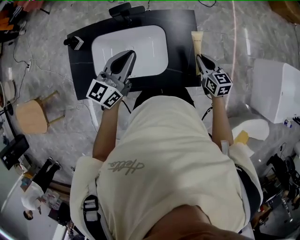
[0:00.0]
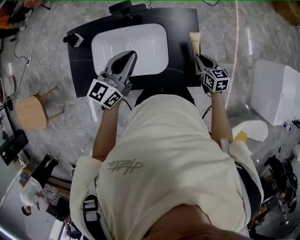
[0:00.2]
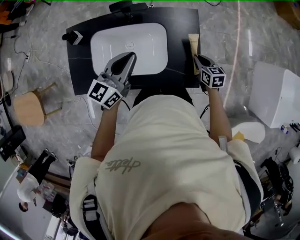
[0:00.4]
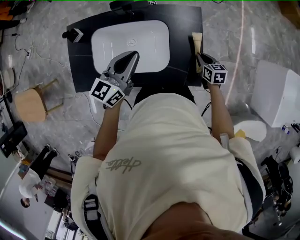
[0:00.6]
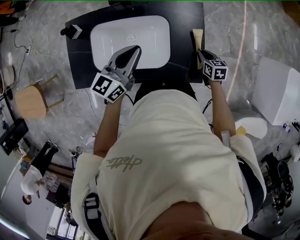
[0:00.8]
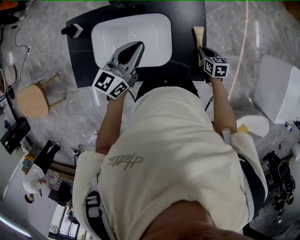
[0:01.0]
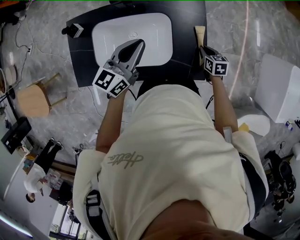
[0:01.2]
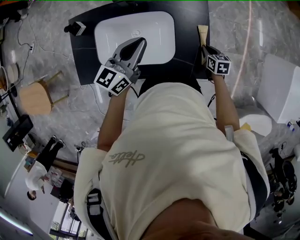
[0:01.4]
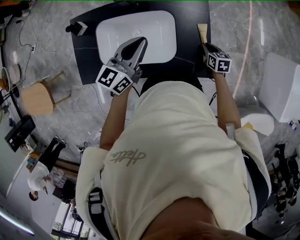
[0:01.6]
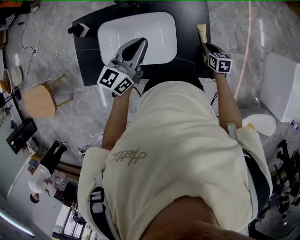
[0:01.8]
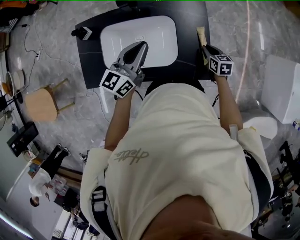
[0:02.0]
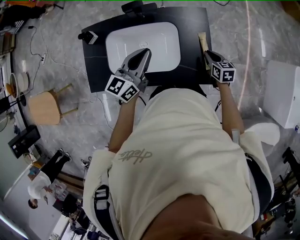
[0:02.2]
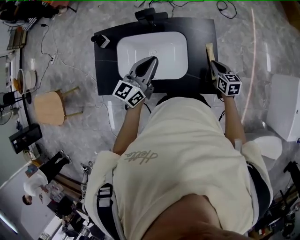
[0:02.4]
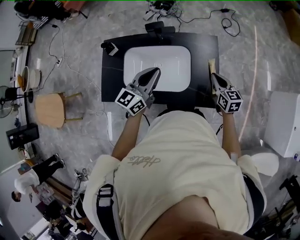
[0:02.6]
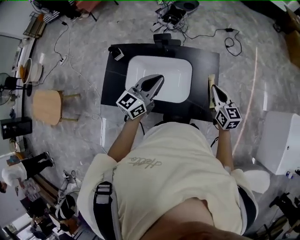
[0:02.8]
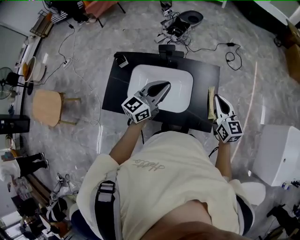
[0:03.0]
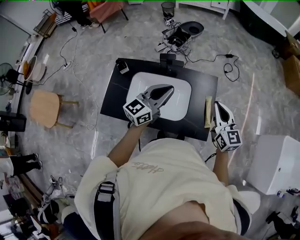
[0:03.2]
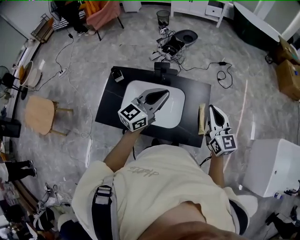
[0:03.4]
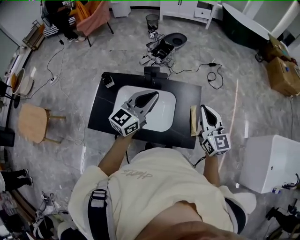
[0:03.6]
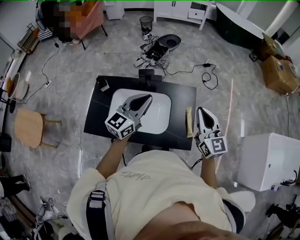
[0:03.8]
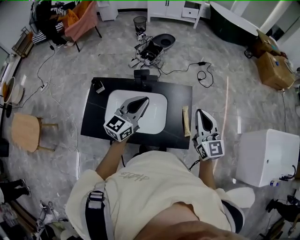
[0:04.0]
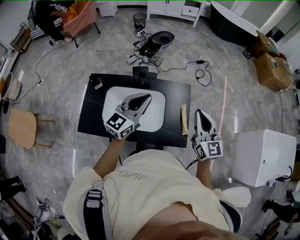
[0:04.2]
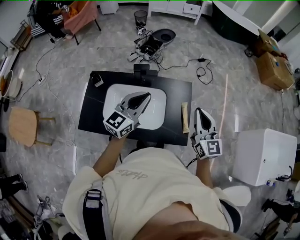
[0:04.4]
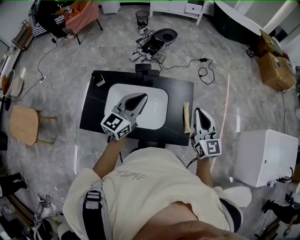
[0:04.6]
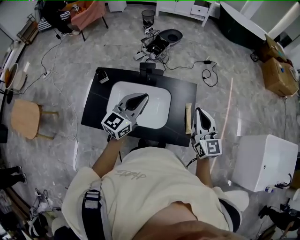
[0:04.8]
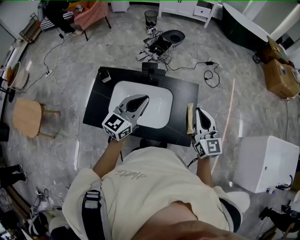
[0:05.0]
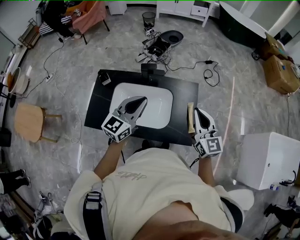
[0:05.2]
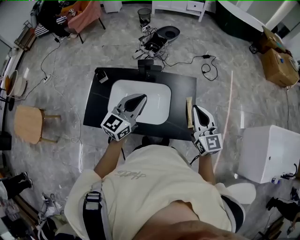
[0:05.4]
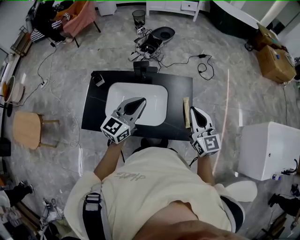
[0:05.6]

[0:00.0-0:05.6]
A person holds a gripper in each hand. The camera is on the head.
0.0 to 1.4 s: The left gripper changes place by about 5 cm, while the right gripper moves downward, approximately 15 cm, and turns by about 20 degrees.
1.4 to 2.8 s: The left gripper travels backward and upward by roughly 10 cm, while the right gripper moves upward, roughly 25 cm, and tips its fingers upward by roughly 30 degrees.
2.8 to 4.2 s: The right gripper shifts some 15 cm upward, and changes its angle by approximately 20 degrees, while the left gripper heads upward, covering about 10 cm.
4.2 to 5.6 s: The left gripper changes place by approximately 5 cm.

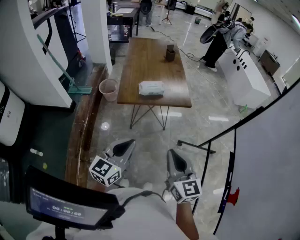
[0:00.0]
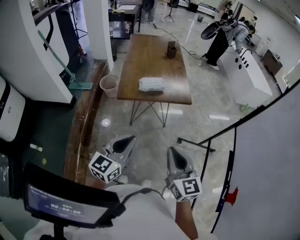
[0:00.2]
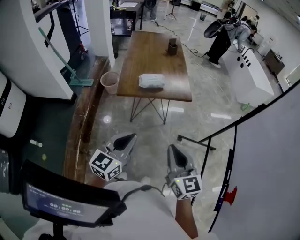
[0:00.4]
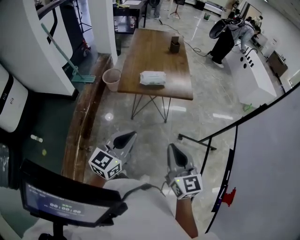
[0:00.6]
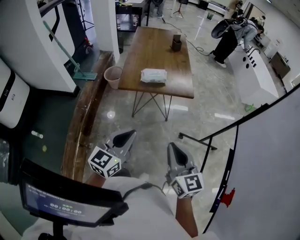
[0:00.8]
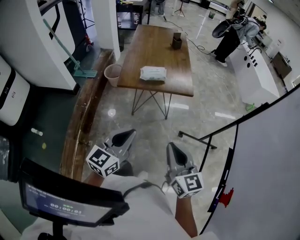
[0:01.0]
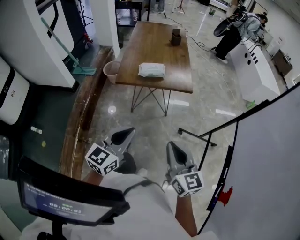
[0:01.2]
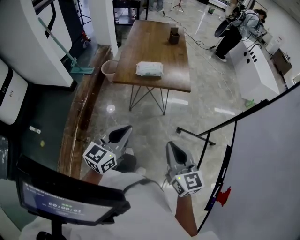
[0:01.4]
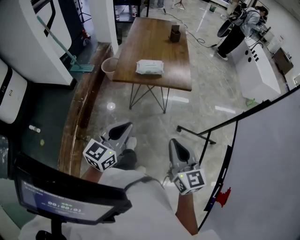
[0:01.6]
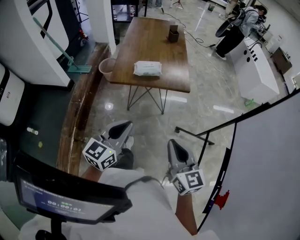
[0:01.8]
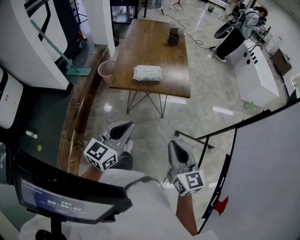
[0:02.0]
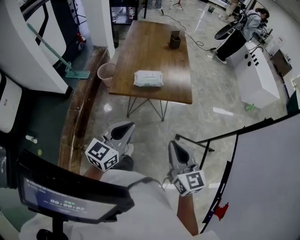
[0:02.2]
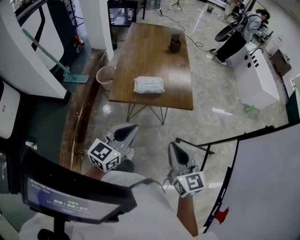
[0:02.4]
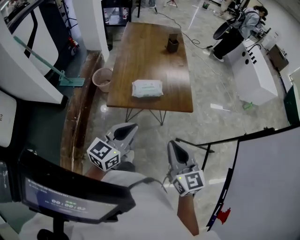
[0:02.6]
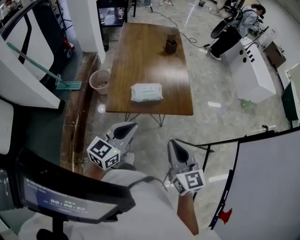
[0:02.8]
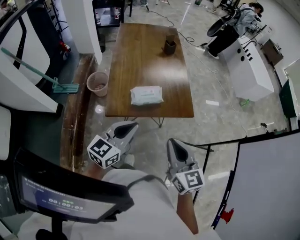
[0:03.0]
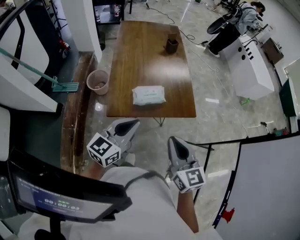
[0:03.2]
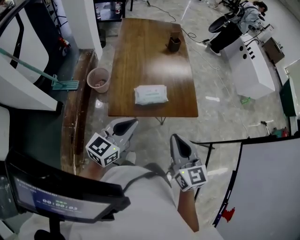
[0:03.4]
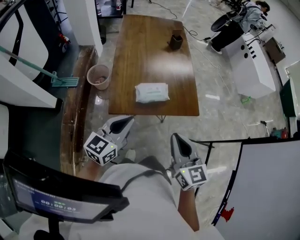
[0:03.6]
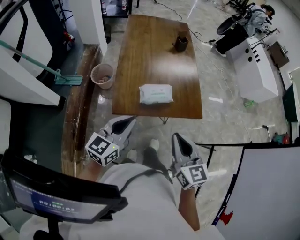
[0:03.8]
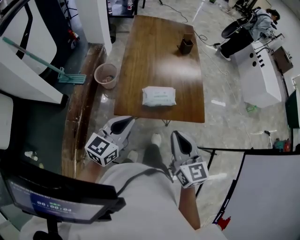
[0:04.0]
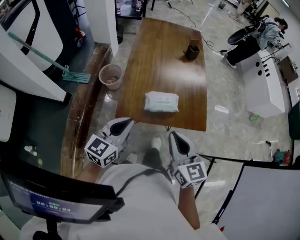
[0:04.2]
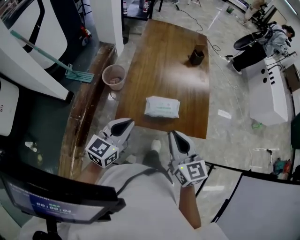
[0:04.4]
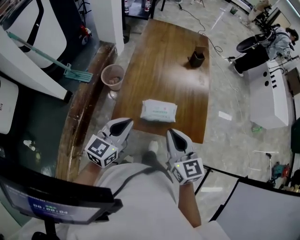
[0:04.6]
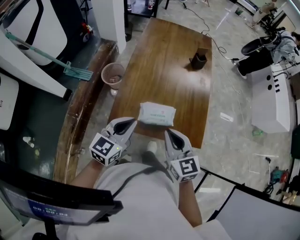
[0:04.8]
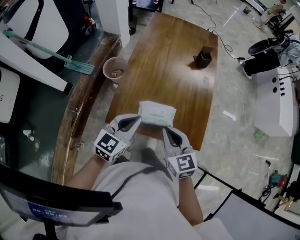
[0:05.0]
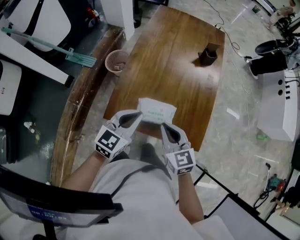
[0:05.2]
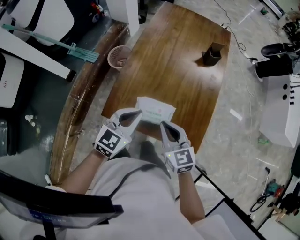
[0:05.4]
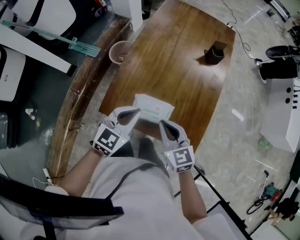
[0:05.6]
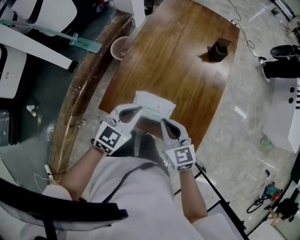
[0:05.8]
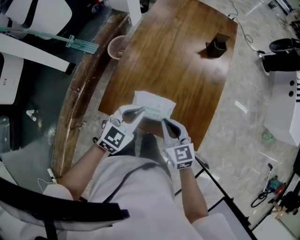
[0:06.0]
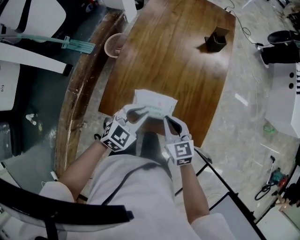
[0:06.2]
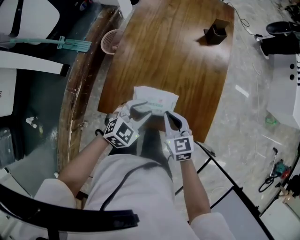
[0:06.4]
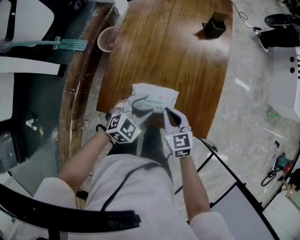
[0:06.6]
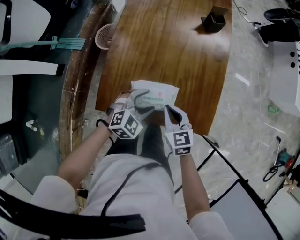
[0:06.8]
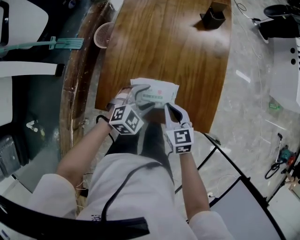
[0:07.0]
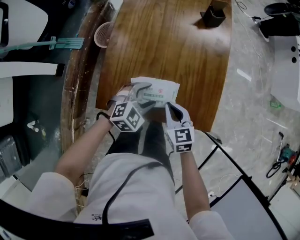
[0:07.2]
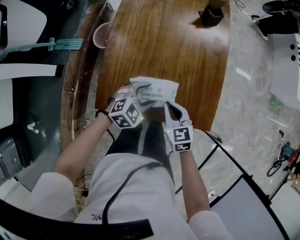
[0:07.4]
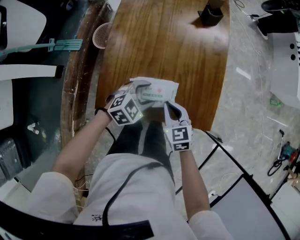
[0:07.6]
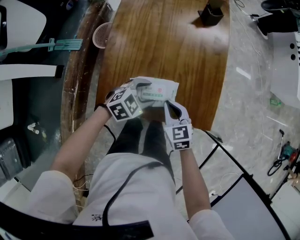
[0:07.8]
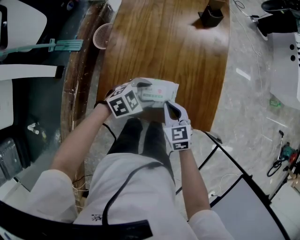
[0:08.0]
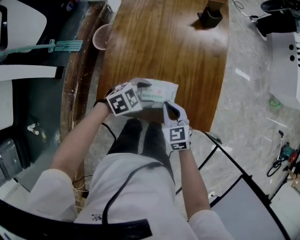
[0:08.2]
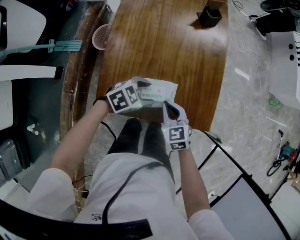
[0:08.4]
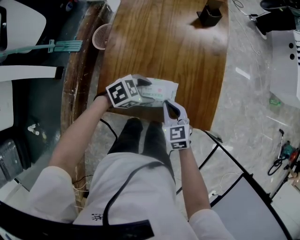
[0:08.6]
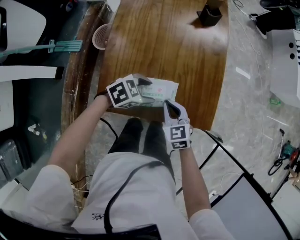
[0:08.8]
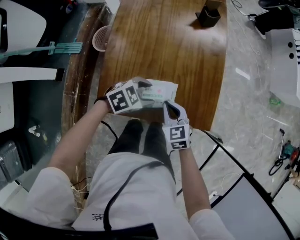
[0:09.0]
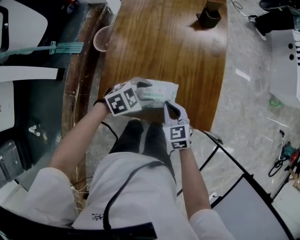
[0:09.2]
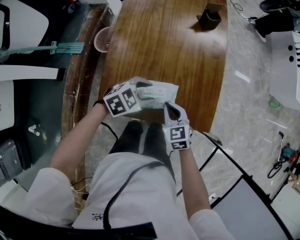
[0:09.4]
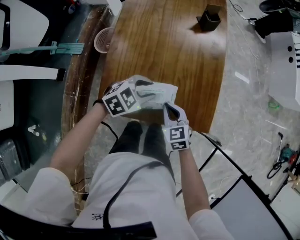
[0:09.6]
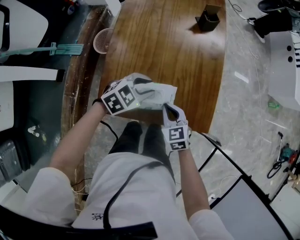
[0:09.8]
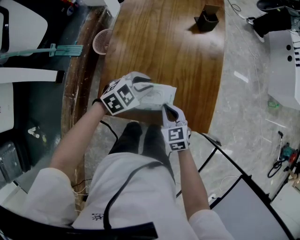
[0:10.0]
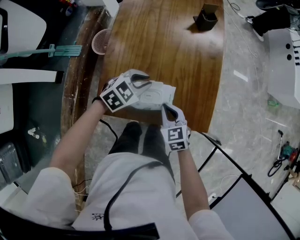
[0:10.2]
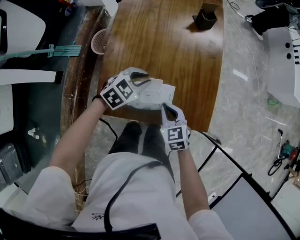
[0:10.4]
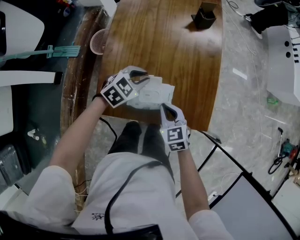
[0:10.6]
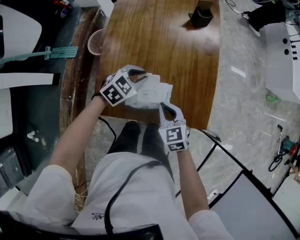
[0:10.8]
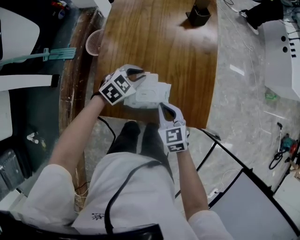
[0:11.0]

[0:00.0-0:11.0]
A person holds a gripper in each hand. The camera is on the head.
0.0 to 1.6 s: Both grippers move to the right, about 10 cm.
1.6 to 3.2 s: The right gripper heads forward and to the left, covering some 30 cm. The left gripper heads forward, covering some 30 cm.
3.2 to 4.8 s: Both grippers move forward, some 15 cm. The left gripper rotates about 20 degrees. Meanwhile the right gripper rotates about 20 degrees.
4.8 to 6.2 s: The left gripper travels downward, to the right and forward by approximately 15 cm, and turns by roughly 30 degrees; the right gripper goes some 15 cm downward and forward.
6.2 to 7.8 s: Both grippers move downward, about 10 cm. The left gripper turns by approximately 30 degrees, and opens.
7.8 to 9.4 s: The grippers move only a little.
9.4 to 11.0 s: The left gripper goes about 5 cm forward, and closes its fingers.

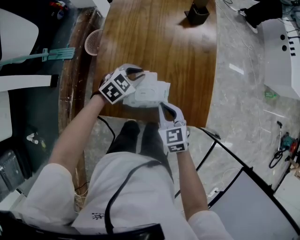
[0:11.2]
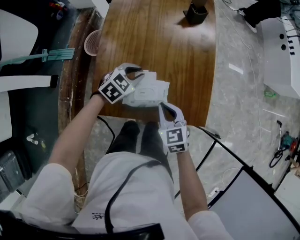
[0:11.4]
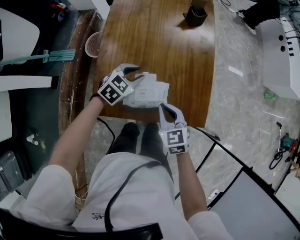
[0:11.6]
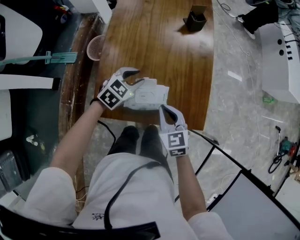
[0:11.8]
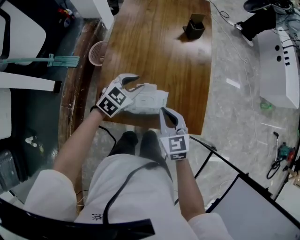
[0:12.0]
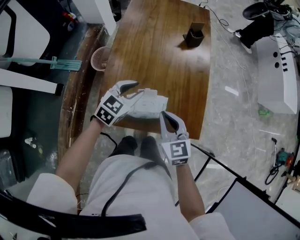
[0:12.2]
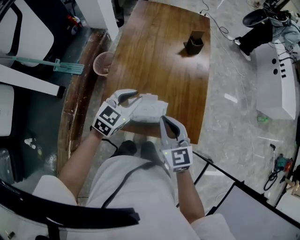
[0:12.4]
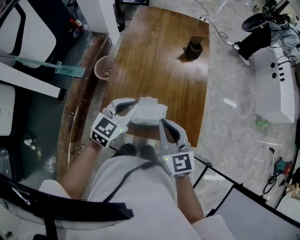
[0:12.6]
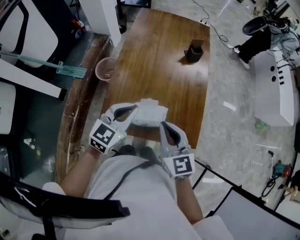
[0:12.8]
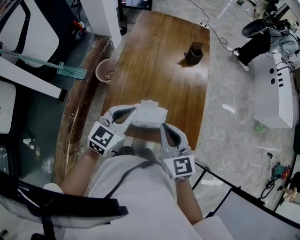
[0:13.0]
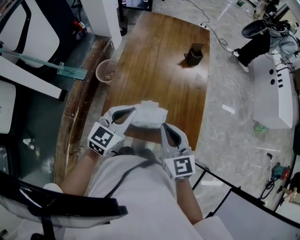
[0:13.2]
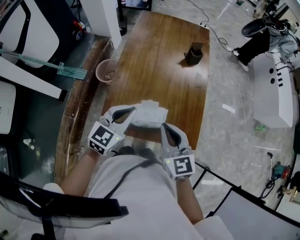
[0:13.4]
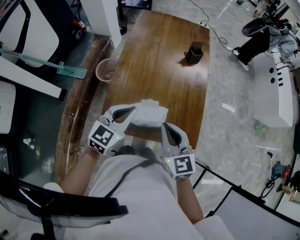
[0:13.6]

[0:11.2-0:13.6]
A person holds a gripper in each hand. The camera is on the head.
11.2 to 12.4 s: The grippers both shift upward by about 15 cm. The left gripper turns by some 20 degrees.
12.4 to 13.6 s: The left gripper moves some 5 cm.

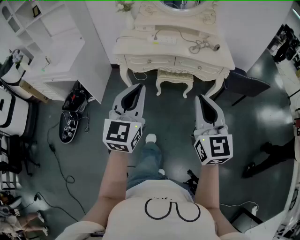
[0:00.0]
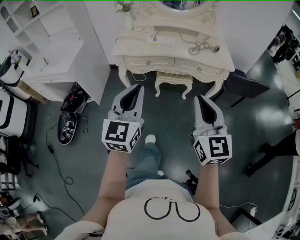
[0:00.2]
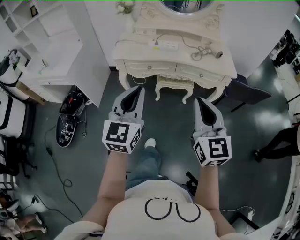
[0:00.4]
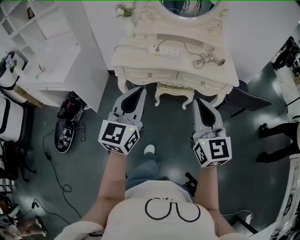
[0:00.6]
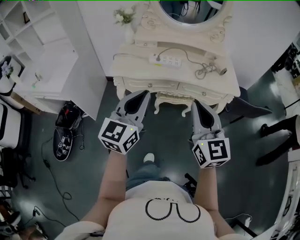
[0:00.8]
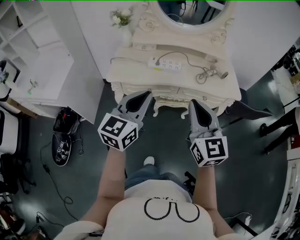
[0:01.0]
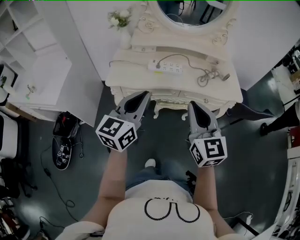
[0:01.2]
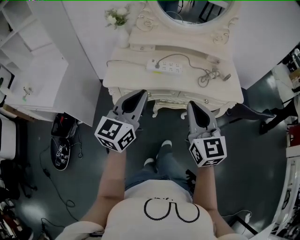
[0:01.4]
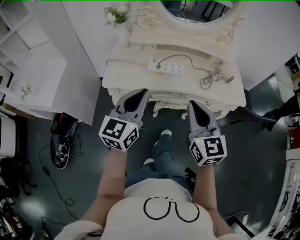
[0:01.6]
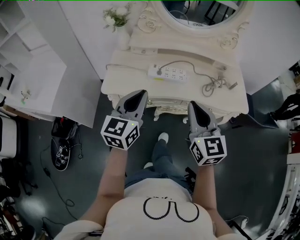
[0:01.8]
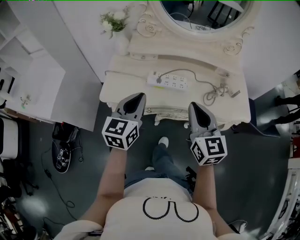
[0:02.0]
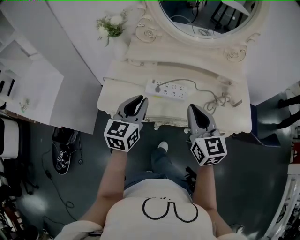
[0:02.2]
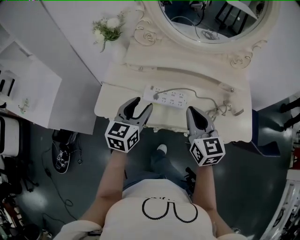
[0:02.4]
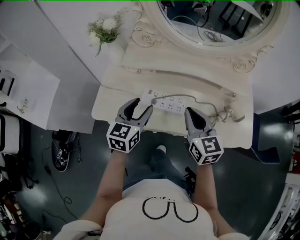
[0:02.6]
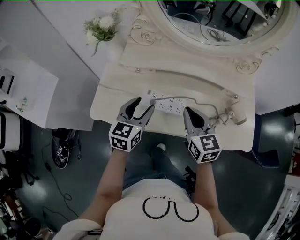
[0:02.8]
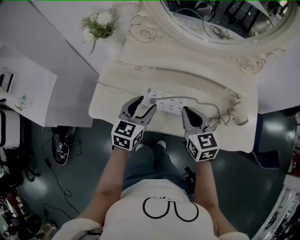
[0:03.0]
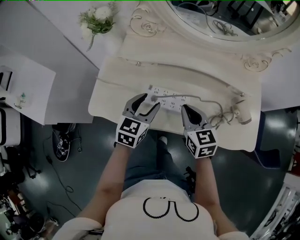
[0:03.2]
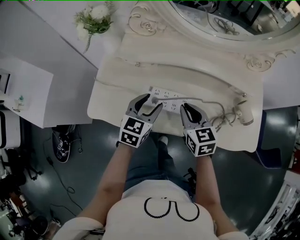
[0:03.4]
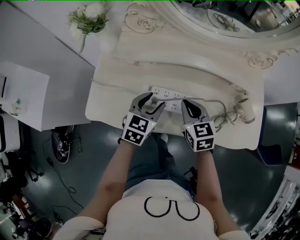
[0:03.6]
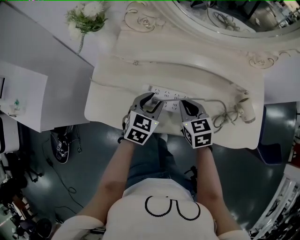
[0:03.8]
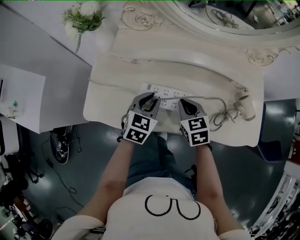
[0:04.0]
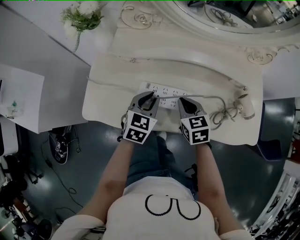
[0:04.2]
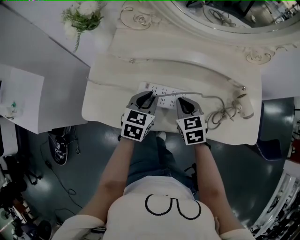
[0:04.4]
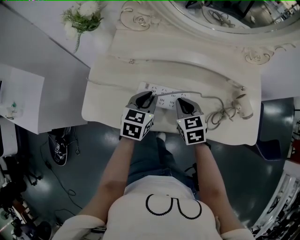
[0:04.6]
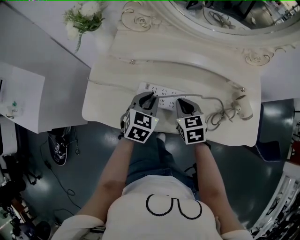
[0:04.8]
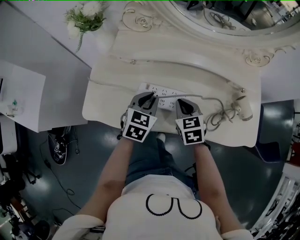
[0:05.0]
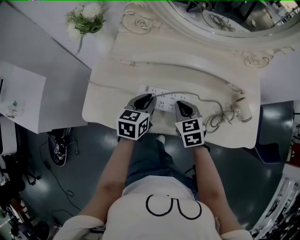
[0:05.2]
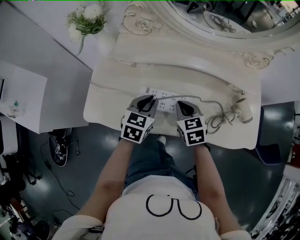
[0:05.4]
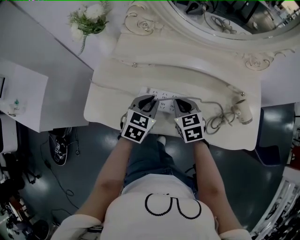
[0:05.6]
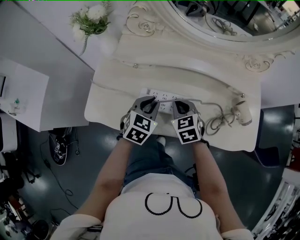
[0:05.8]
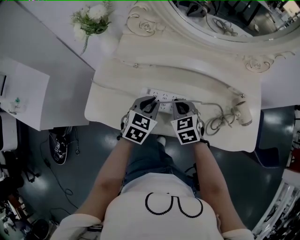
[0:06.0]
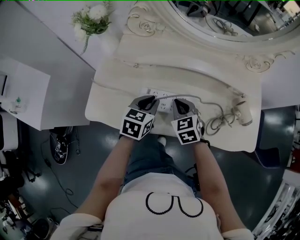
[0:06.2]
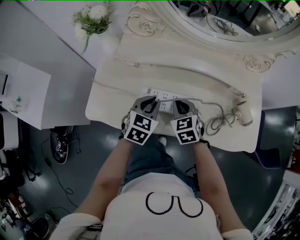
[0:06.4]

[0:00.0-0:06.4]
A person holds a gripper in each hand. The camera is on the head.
0.0 to 1.6 s: The grippers both shift forward by roughly 35 cm.
1.6 to 3.2 s: The two grippers go roughly 35 cm forward and downward. The right gripper swivels about 30 degrees. The left gripper turns by some 30 degrees, and opens.
3.2 to 4.8 s: The two grippers go about 5 cm downward. The left gripper closes up.
